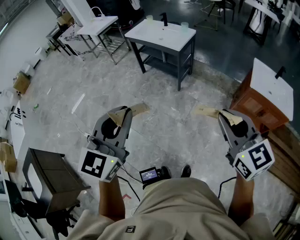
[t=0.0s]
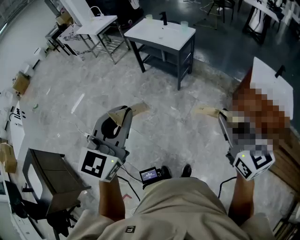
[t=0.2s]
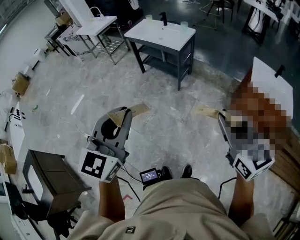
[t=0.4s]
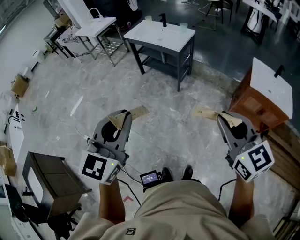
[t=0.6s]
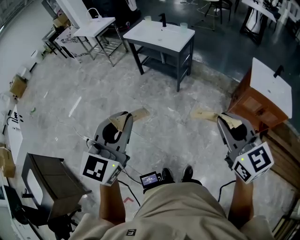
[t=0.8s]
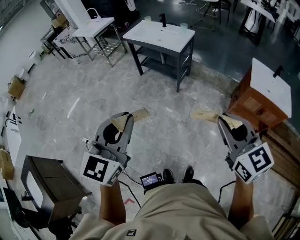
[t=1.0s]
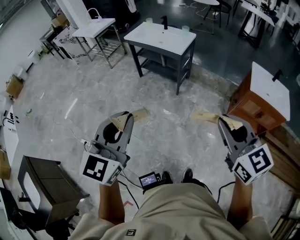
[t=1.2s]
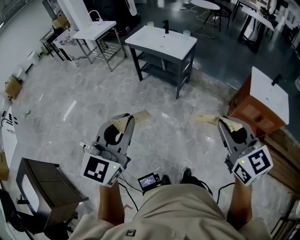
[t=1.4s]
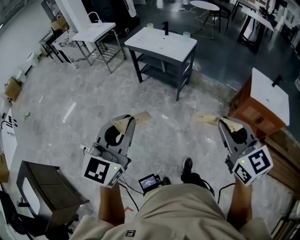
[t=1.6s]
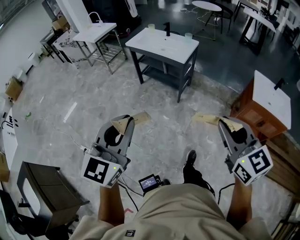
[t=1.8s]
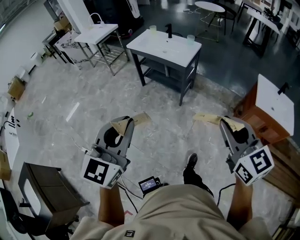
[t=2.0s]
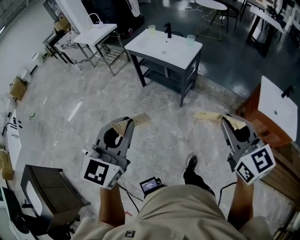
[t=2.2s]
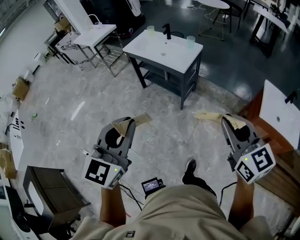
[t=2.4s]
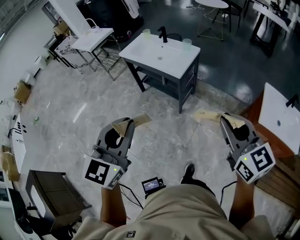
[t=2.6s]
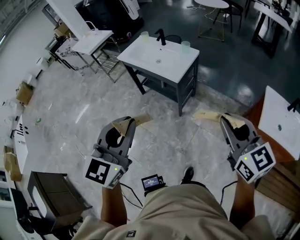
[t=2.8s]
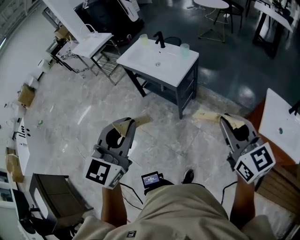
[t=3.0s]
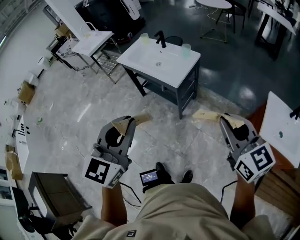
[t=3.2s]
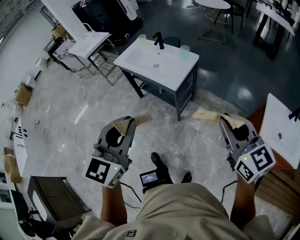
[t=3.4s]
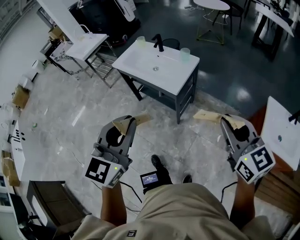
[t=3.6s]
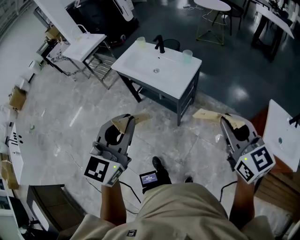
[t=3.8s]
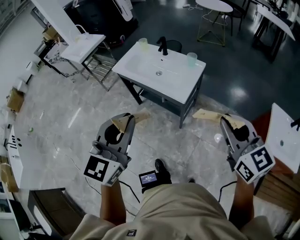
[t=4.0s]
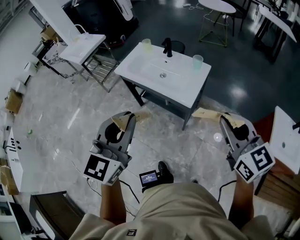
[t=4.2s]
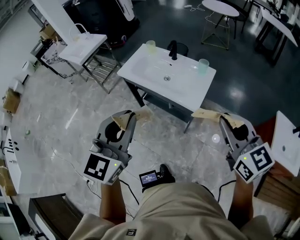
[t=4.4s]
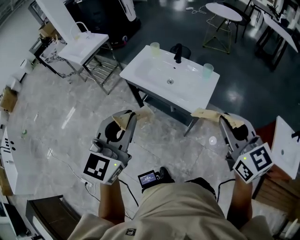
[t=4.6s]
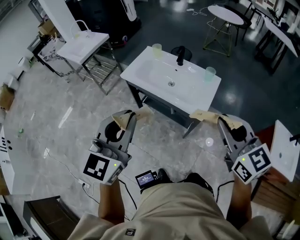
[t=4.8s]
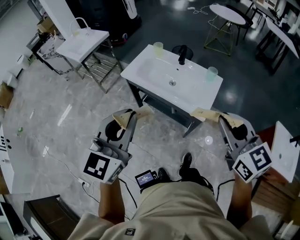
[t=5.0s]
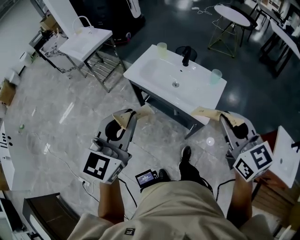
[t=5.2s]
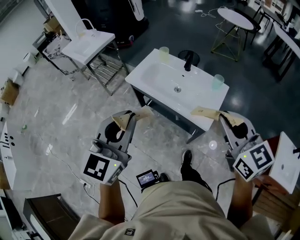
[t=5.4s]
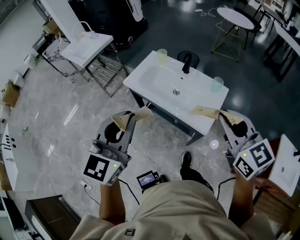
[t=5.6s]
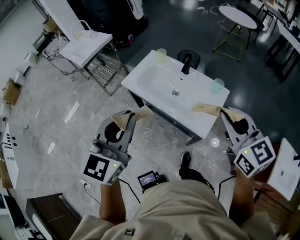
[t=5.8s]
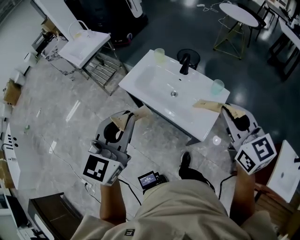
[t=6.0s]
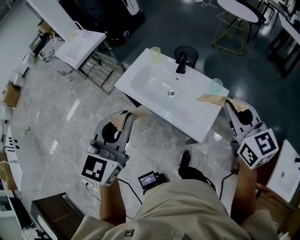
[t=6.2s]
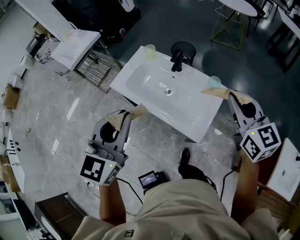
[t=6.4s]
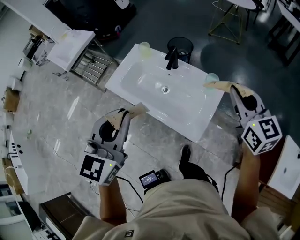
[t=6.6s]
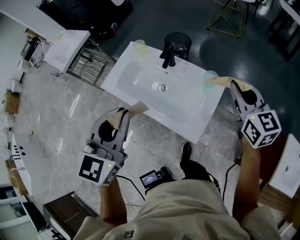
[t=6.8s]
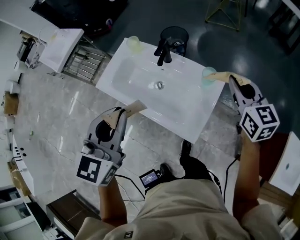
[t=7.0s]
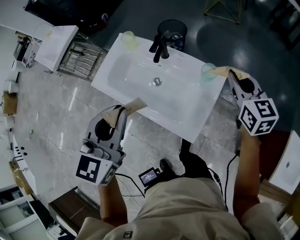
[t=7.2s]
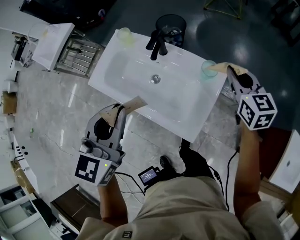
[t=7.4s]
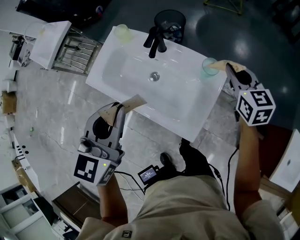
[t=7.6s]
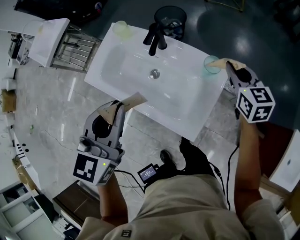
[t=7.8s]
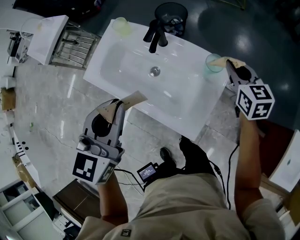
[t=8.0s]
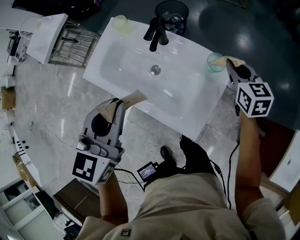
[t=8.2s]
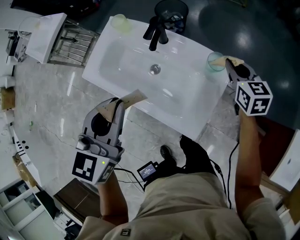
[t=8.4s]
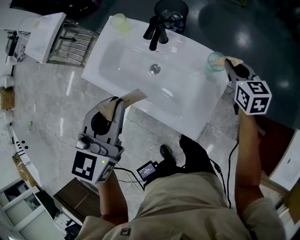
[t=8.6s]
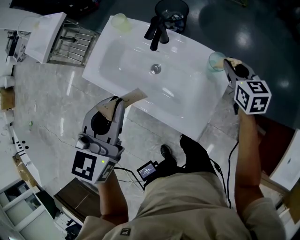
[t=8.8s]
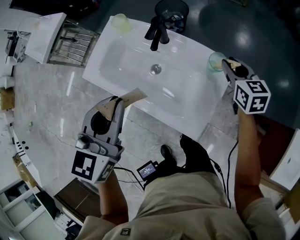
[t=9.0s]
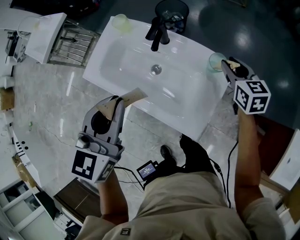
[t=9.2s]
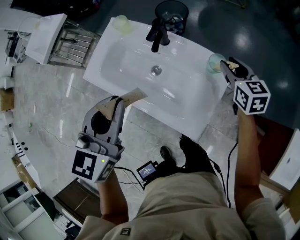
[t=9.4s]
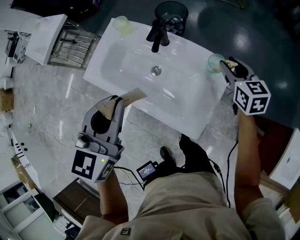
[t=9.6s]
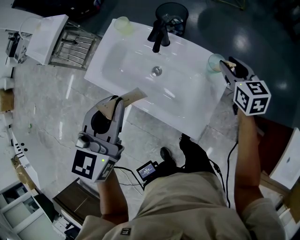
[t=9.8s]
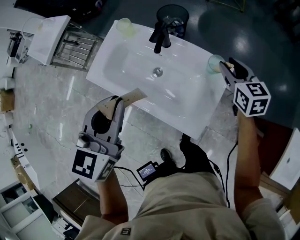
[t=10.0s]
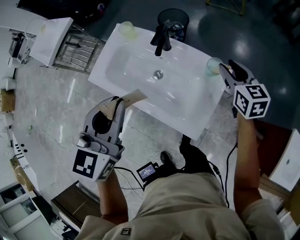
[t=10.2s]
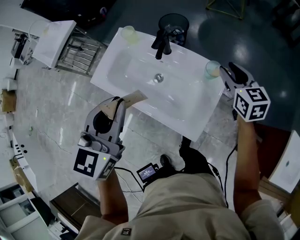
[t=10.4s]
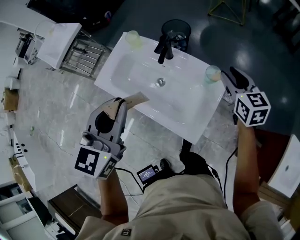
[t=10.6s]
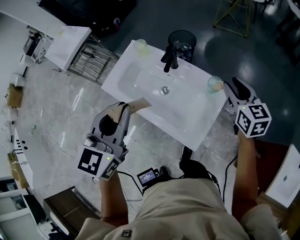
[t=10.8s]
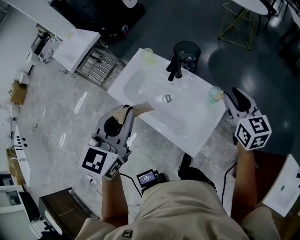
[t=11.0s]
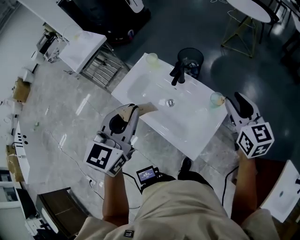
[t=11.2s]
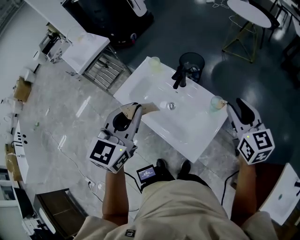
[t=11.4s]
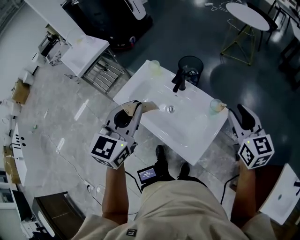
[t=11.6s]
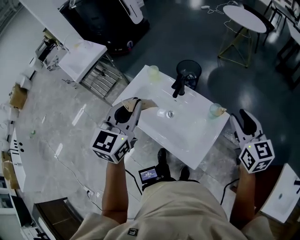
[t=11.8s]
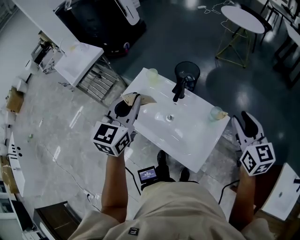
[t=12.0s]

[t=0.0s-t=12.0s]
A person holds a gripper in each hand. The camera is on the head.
t=0.0s to t=1.6s: The two grippers go some 10 cm to the left.
t=1.6s to t=3.0s: The two grippers go some 40 cm forward and to the right.
t=3.0s to t=4.4s: The two grippers go about 35 cm forward and to the left.
t=4.4s to t=6.0s: The grippers both shift forward by approximately 25 cm.
t=6.0s to t=7.6s: Both grippers move forward, downward and to the right, approximately 35 cm. The right gripper swivels roughly 20 degrees.
t=7.6s to t=9.0s: The right gripper heads downward, covering approximately 10 cm.
t=9.0s to t=10.4s: The right gripper is displaced upward by approximately 10 cm. The left gripper ends up approximately 5 cm from where it was.
t=10.4s to t=12.0s: The right gripper moves upward and backward, approximately 20 cm. Meanwhile the left gripper travels forward and upward by some 10 cm.

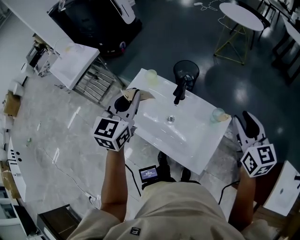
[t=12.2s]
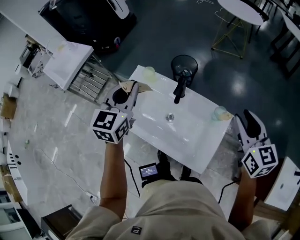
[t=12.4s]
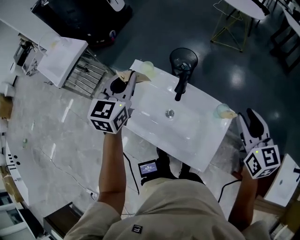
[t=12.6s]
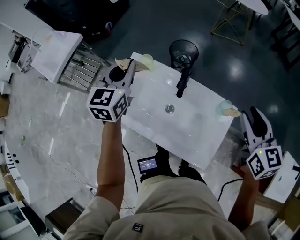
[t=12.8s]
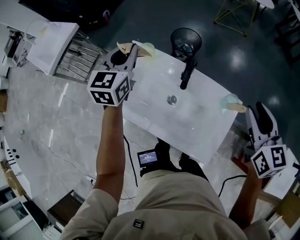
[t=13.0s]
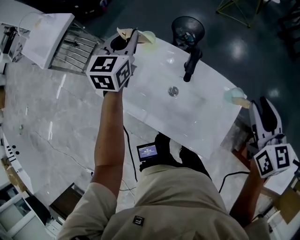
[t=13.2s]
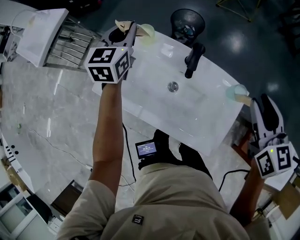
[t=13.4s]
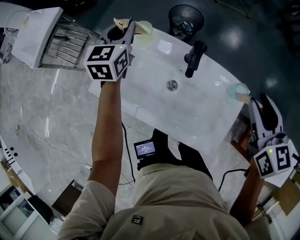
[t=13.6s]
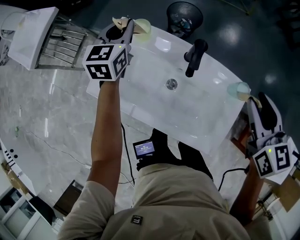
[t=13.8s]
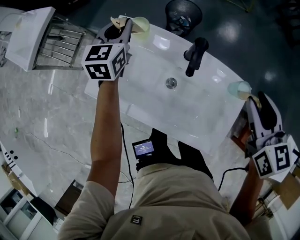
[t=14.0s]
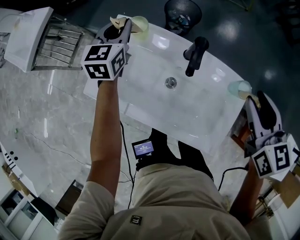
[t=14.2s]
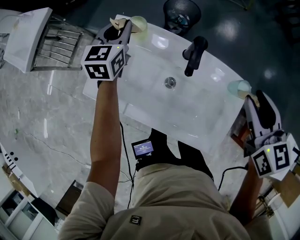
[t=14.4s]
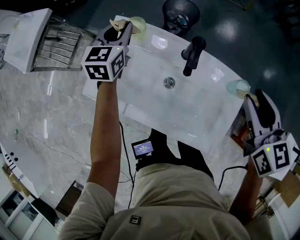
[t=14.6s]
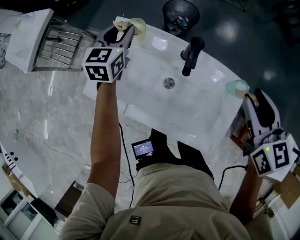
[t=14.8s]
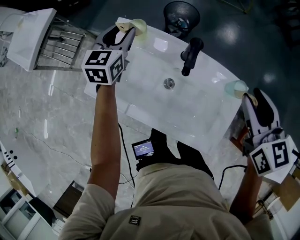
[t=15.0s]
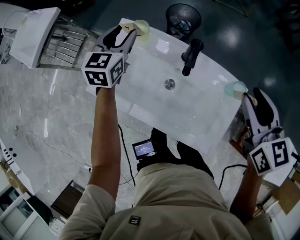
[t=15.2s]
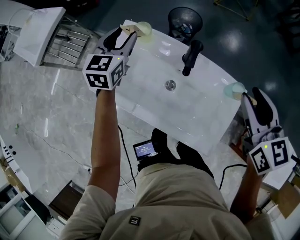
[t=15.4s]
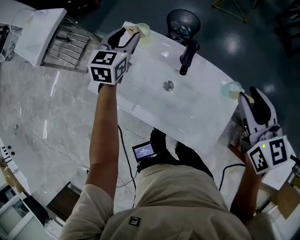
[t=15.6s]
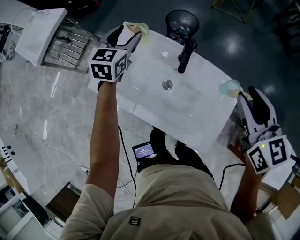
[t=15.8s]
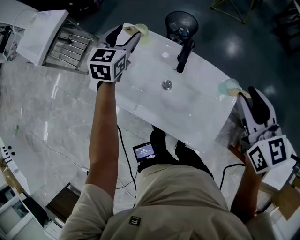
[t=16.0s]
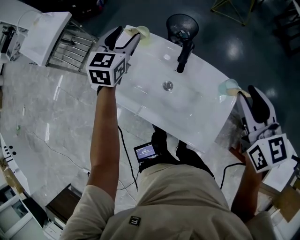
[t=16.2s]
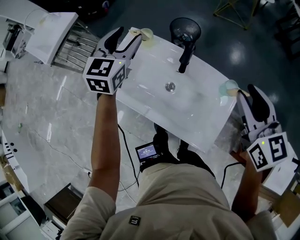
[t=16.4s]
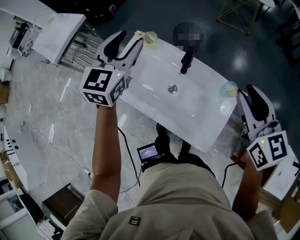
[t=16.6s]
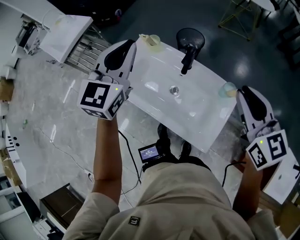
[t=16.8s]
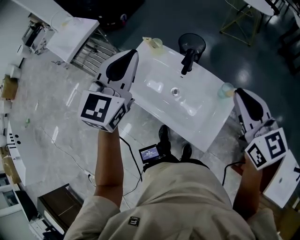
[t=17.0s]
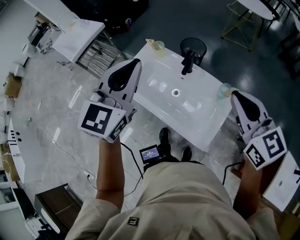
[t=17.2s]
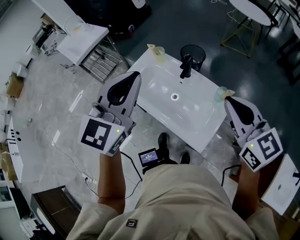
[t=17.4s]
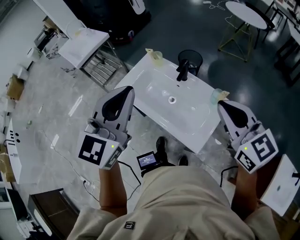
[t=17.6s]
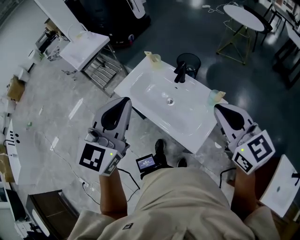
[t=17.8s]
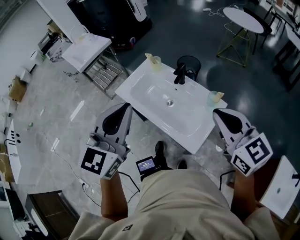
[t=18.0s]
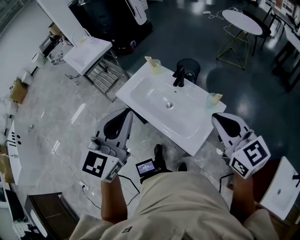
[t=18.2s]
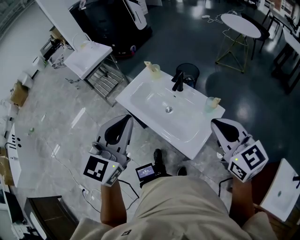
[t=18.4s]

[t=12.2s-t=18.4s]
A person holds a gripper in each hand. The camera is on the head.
t=12.2s to t=13.8s: The left gripper travels forward and downward by about 35 cm; the right gripper is displaced downward, to the left and forward by about 15 cm.
t=13.8s to t=15.4s: The left gripper opens its fingers.
t=15.4s to t=16.8s: The right gripper moves upward and backward, roughly 10 cm, and closes up, while the left gripper moves upward and backward, some 25 cm, and closes its fingers.
t=16.8s to t=18.4s: The right gripper shifts roughly 20 cm backward; the left gripper heads backward, covering about 35 cm.

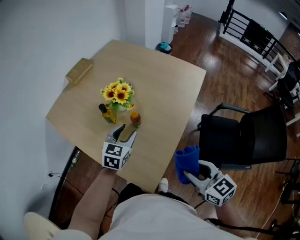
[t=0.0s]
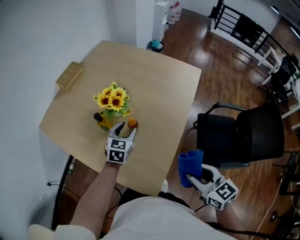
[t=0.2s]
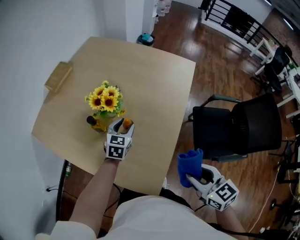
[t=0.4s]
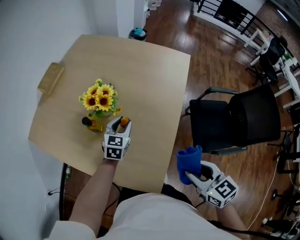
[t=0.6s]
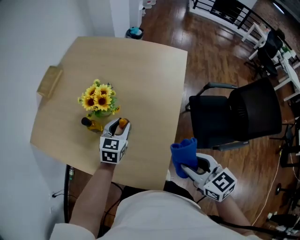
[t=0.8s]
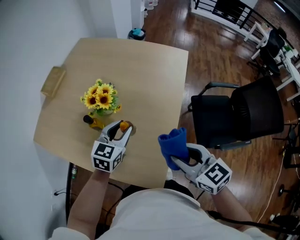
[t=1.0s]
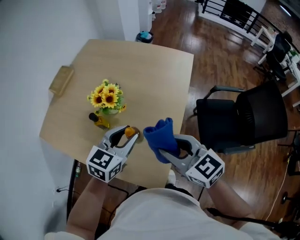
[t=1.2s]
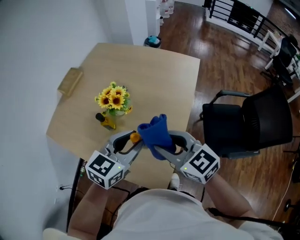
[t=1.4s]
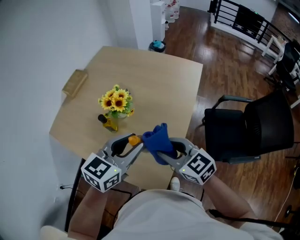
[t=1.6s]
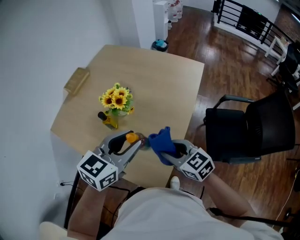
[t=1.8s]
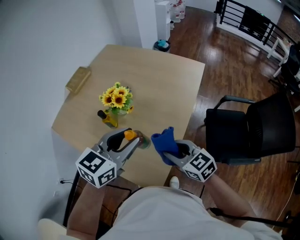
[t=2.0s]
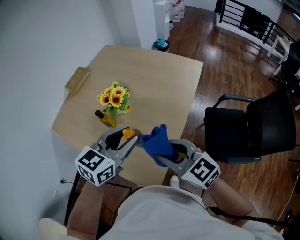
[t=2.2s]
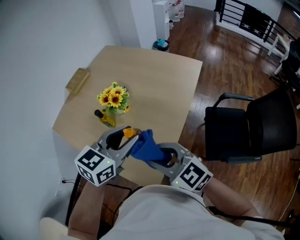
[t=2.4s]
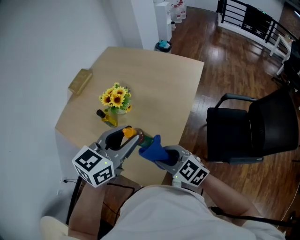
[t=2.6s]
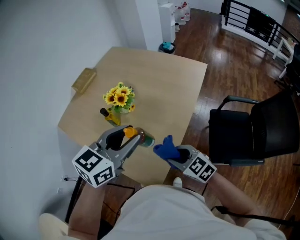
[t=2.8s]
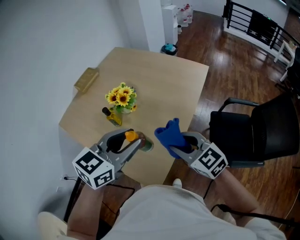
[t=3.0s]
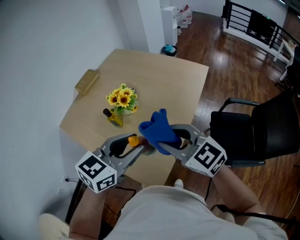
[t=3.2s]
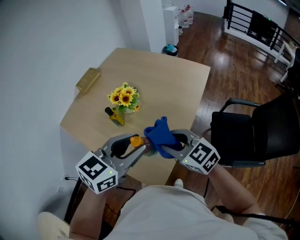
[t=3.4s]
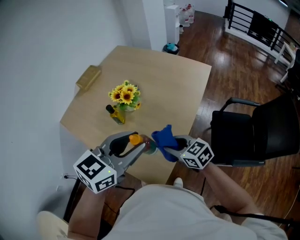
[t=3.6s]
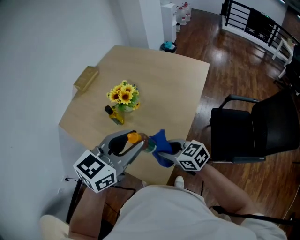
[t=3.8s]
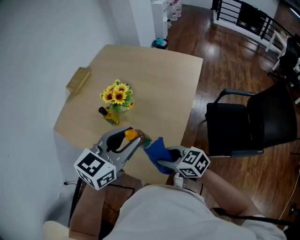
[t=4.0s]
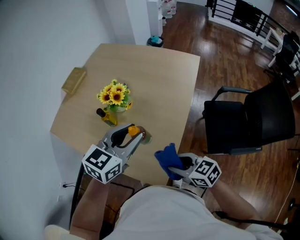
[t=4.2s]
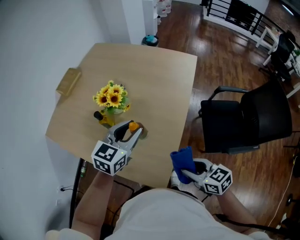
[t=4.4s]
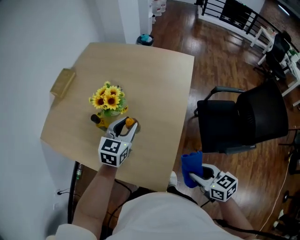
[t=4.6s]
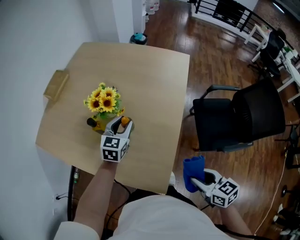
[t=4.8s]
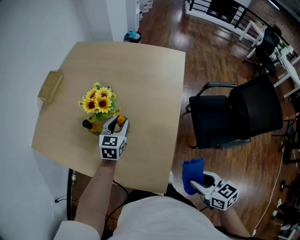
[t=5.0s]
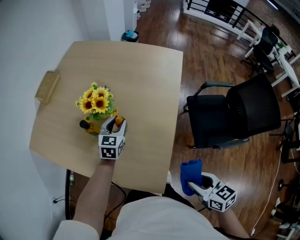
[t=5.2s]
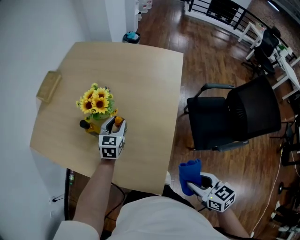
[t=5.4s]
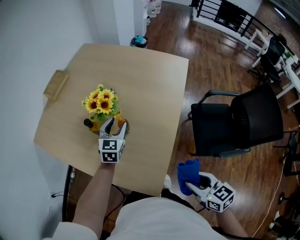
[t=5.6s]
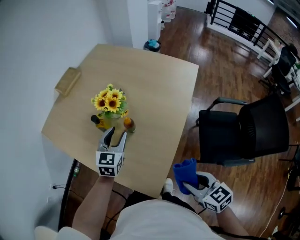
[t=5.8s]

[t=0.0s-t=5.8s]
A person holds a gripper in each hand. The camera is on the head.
t=0.0s to t=1.4s: The right gripper goes some 15 cm to the left and forward. Meanwhile the left gripper moves upward, roughly 10 cm, and changes its angle by about 20 degrees.
t=1.4s to t=2.8s: The right gripper goes up and down, about 15 cm each way, reversing 2 times. The left gripper travels upward by approximately 5 cm.
t=2.8s to t=4.4s: The left gripper is displaced downward and forward by roughly 10 cm. The right gripper travels backward by about 5 cm, reaches some 15 cm upward, then returns, and rotates approximately 30 degrees.
t=4.4s to t=5.8s: The left gripper shifts approximately 10 cm downward and to the left, and changes its angle by about 20 degrees.
